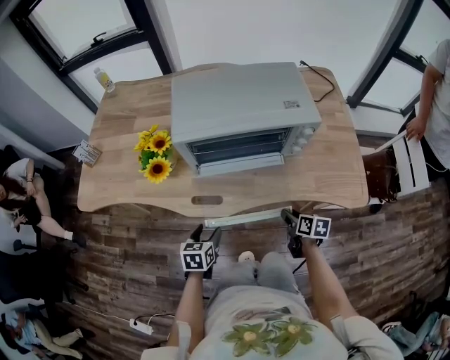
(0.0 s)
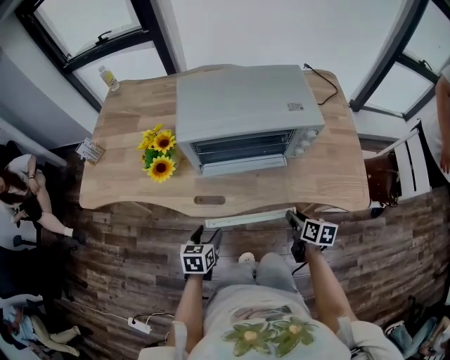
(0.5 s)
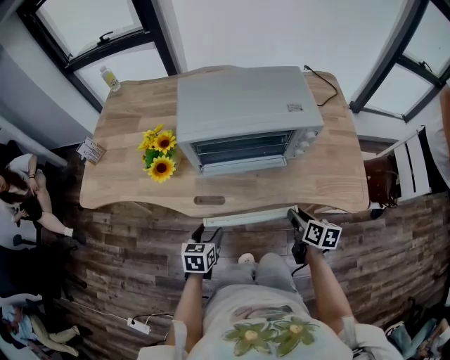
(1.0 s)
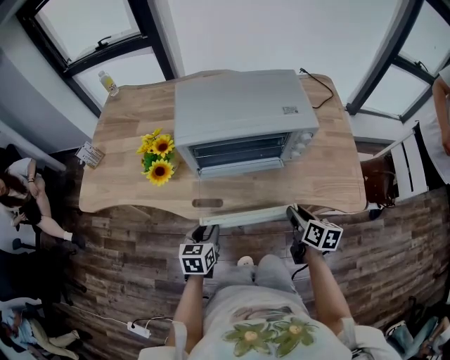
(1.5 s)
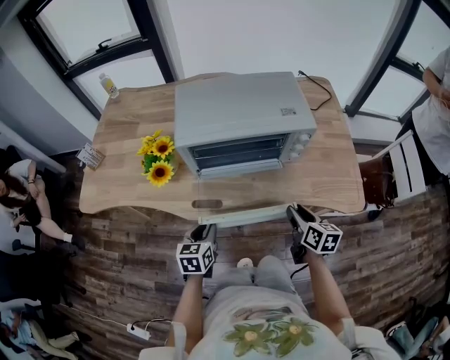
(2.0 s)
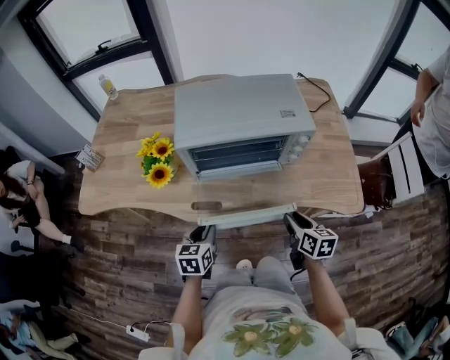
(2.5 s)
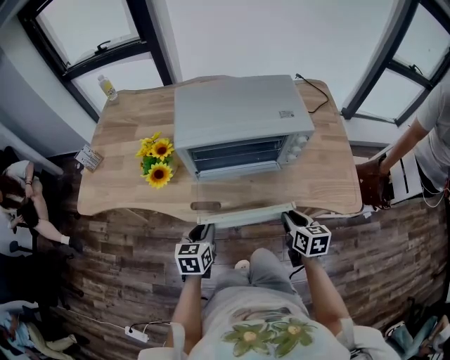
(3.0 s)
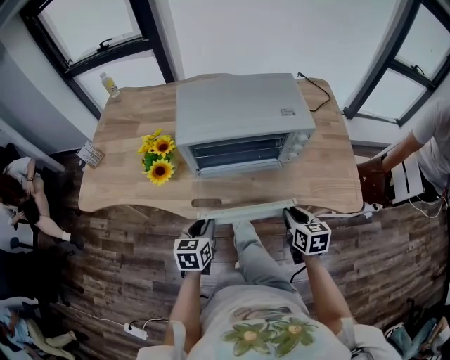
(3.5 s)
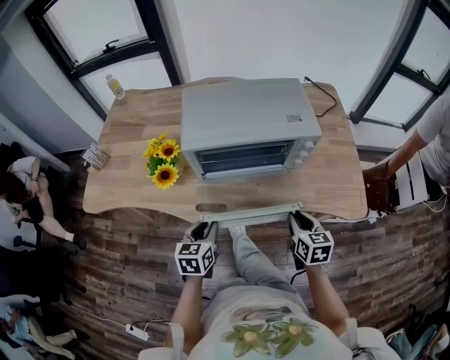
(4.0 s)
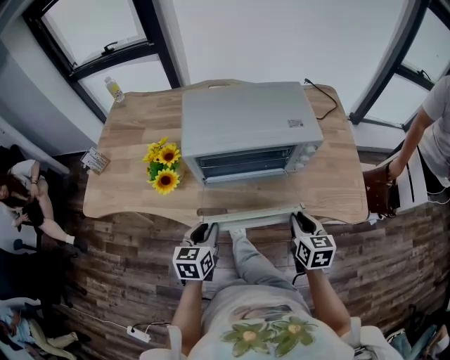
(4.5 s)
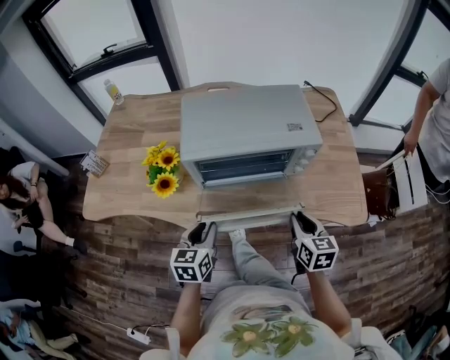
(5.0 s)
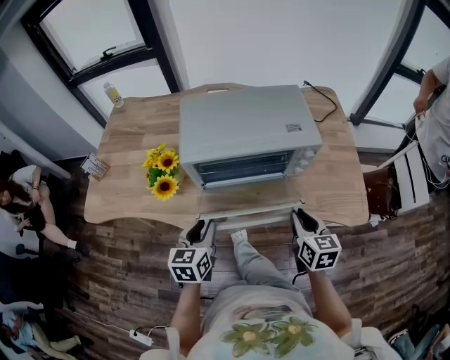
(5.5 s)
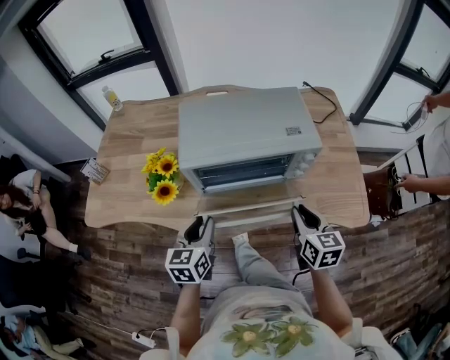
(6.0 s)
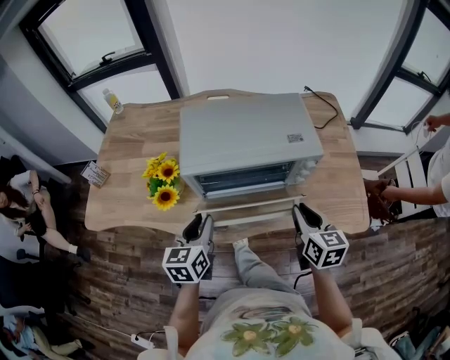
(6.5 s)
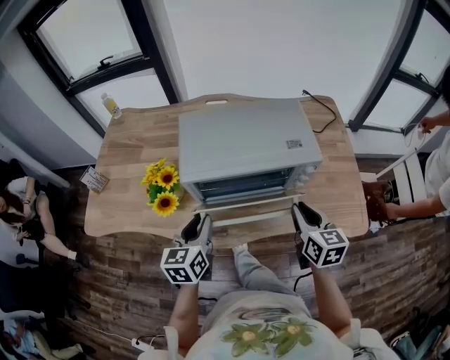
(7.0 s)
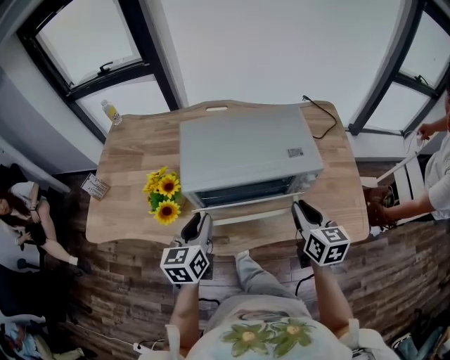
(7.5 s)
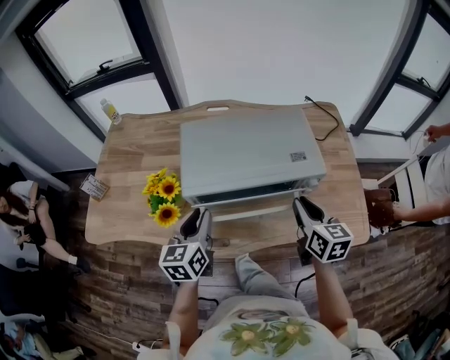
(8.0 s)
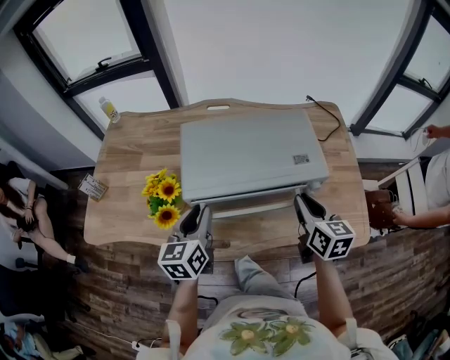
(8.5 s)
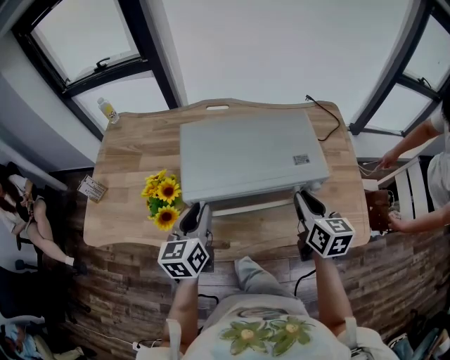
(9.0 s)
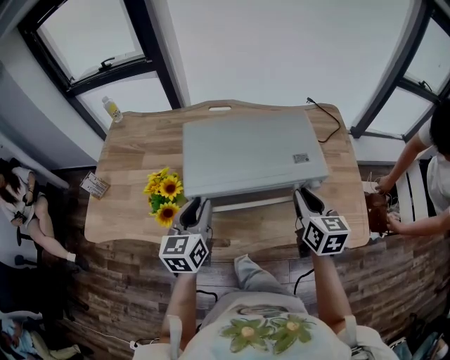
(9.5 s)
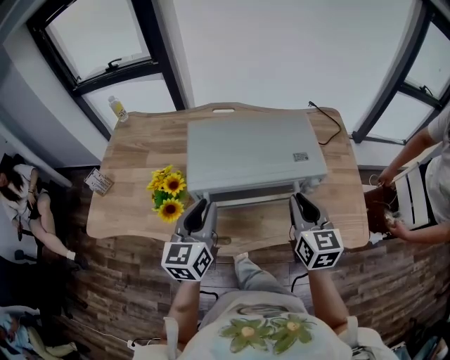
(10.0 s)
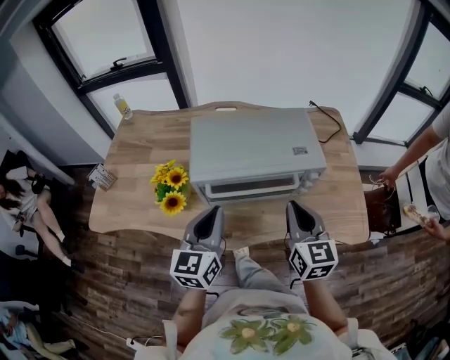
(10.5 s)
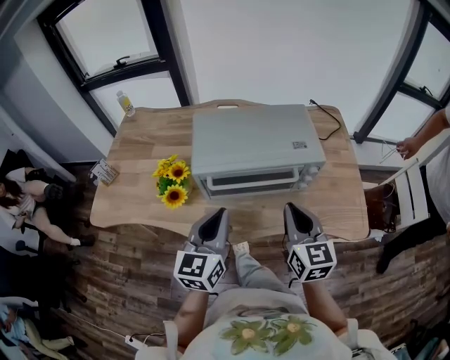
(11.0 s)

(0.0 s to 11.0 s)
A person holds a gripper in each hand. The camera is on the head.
0.0 s - 2.0 s: The right gripper goes some 10 cm upward; the left gripper travels upward by some 5 cm, and closes.
2.0 s - 3.5 s: The grippers move only a little.
3.5 s - 5.5 s: Both grippers move upward, about 5 cm.
5.5 s - 7.5 s: Both grippers travel together forward and upward, roughly 10 cm.
7.5 s - 9.0 s: The right gripper moves approximately 5 cm; the left gripper changes place by about 5 cm.
9.0 s - 11.0 s: The right gripper heads backward and to the left, covering approximately 10 cm, while the left gripper goes approximately 15 cm backward, upward and to the right, and closes its fingers.

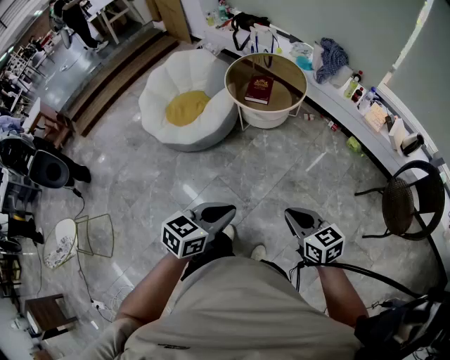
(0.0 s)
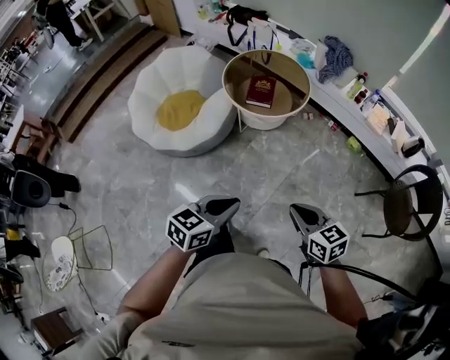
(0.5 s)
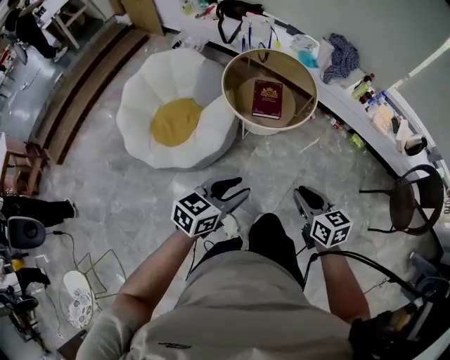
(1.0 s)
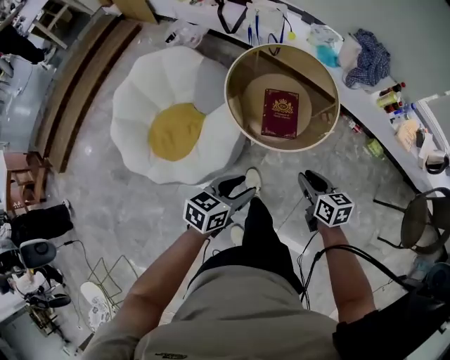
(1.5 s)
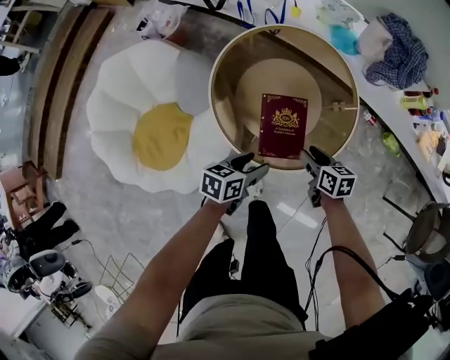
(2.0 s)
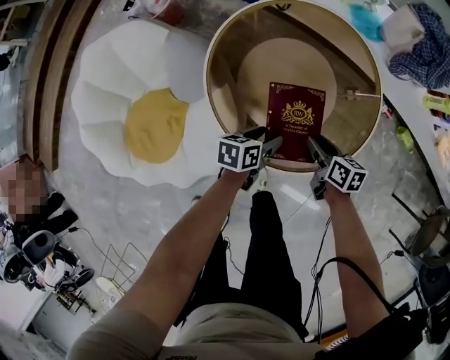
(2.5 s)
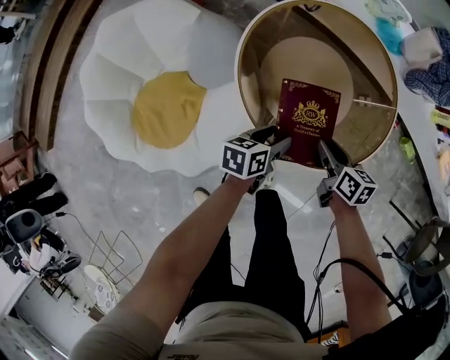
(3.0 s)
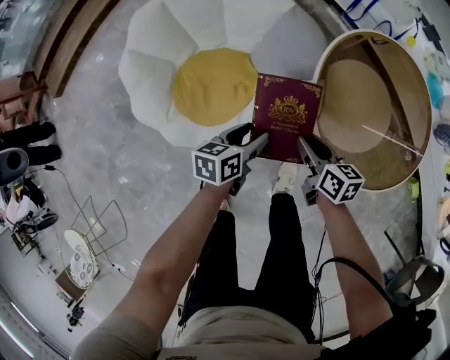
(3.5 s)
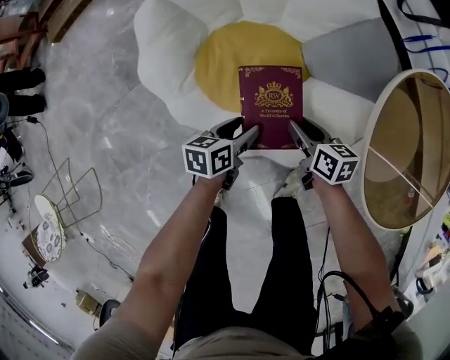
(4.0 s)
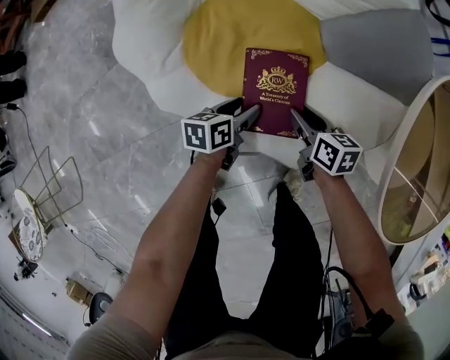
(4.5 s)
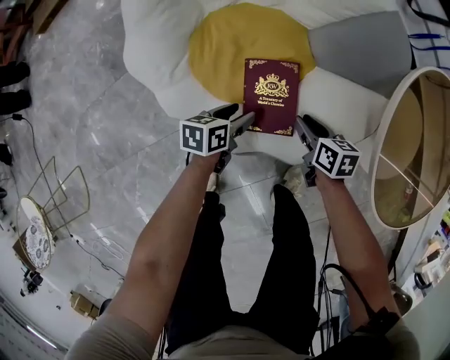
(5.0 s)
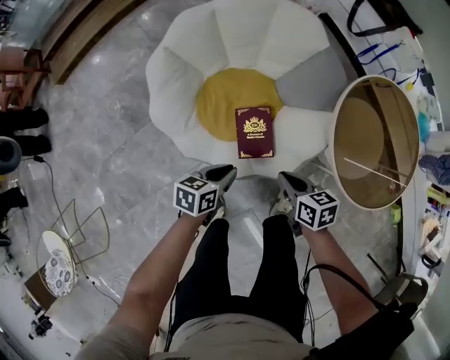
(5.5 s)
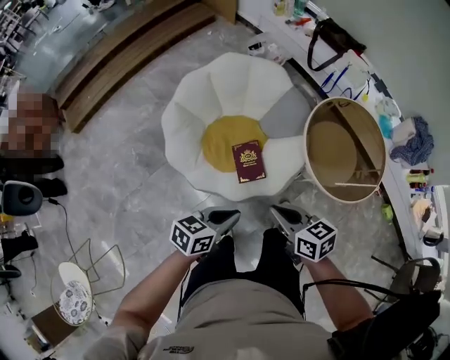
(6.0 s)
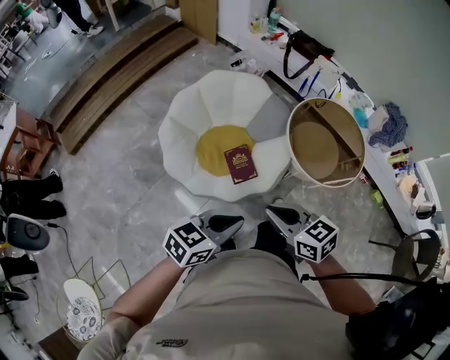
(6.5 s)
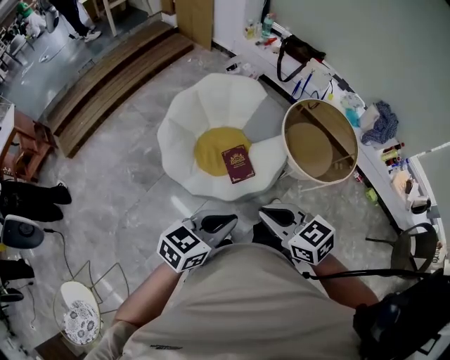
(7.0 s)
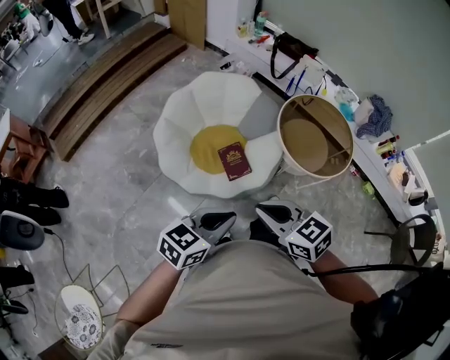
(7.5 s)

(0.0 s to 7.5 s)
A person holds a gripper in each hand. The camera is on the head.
0.0 s - 2.0 s: The pair of grippers is taken forward, approximately 80 cm. The two grippers go approximately 35 cm downward. The right gripper swivels about 40 degrees, and opens, while the left gripper rotates approximately 30 degrees, and opens its fingers.
2.0 s - 4.0 s: The two grippers travel together, some 50 cm. The right gripper swivels some 30 degrees. Meanwhile the left gripper turns by roughly 50 degrees.
4.0 s - 5.5 s: The left gripper travels upward by roughly 15 cm, and closes its fingers; the right gripper heads upward and backward, covering roughly 20 cm, and closes.
5.5 s - 7.5 s: The two grippers go about 50 cm upward and backward. The left gripper turns by approximately 40 degrees, while the right gripper rotates approximately 30 degrees.

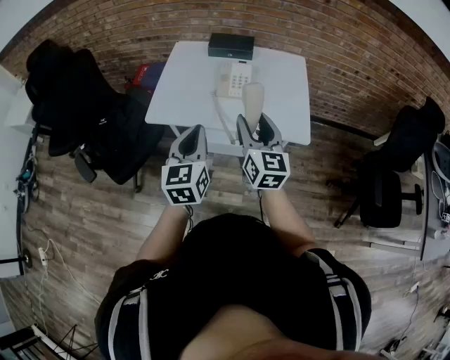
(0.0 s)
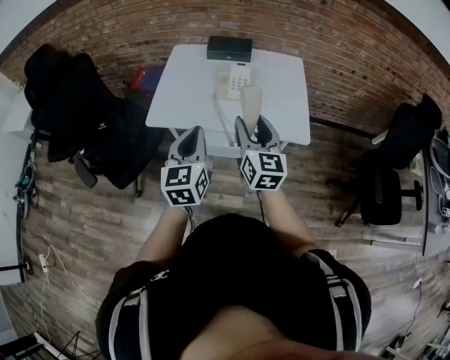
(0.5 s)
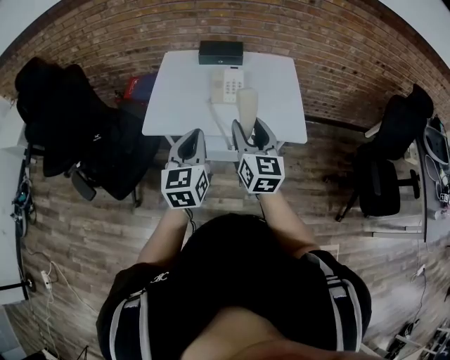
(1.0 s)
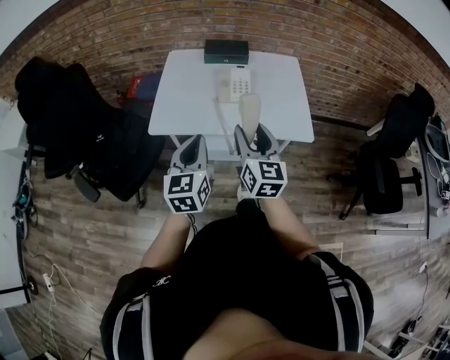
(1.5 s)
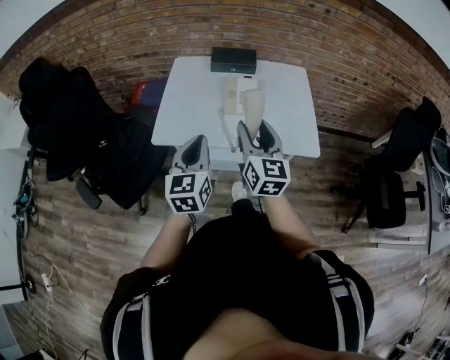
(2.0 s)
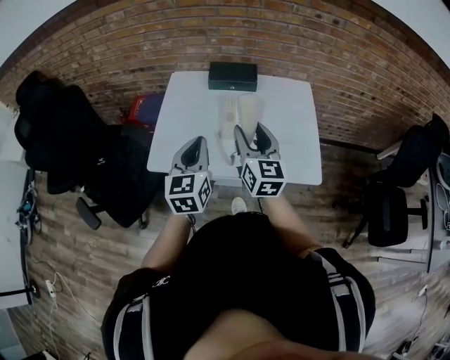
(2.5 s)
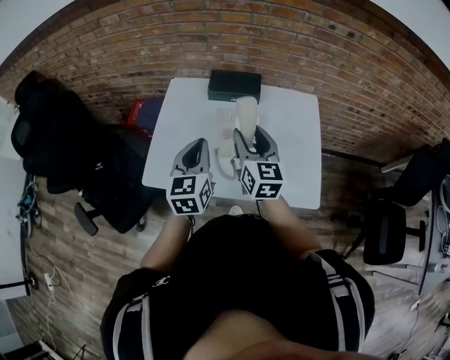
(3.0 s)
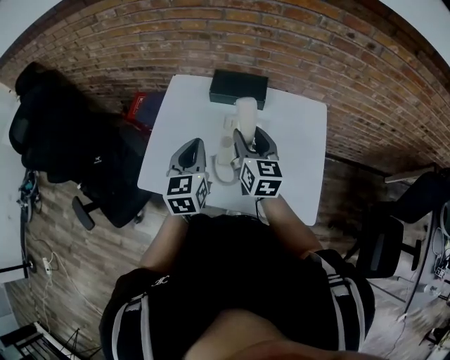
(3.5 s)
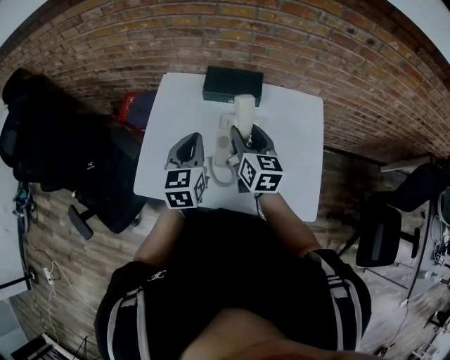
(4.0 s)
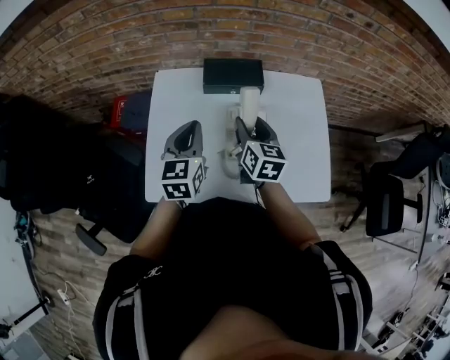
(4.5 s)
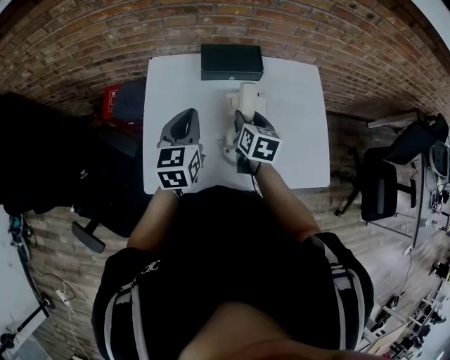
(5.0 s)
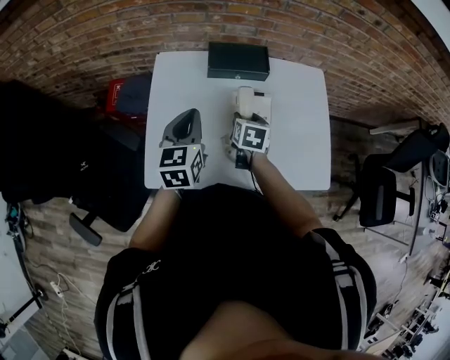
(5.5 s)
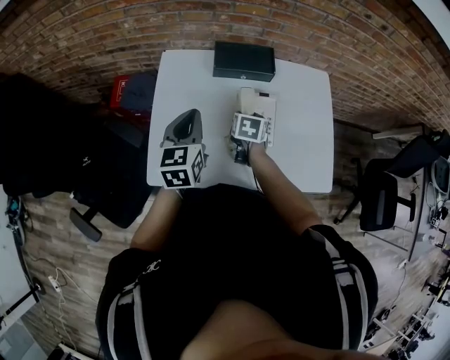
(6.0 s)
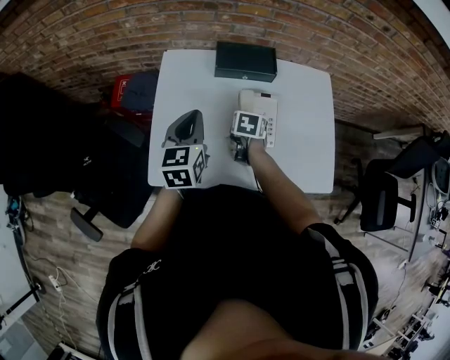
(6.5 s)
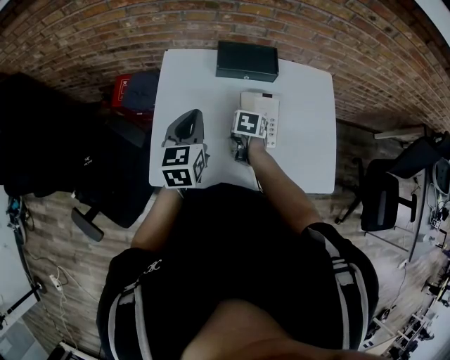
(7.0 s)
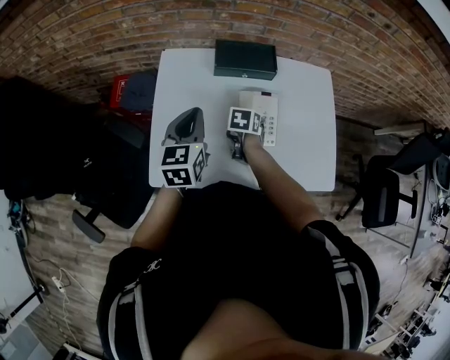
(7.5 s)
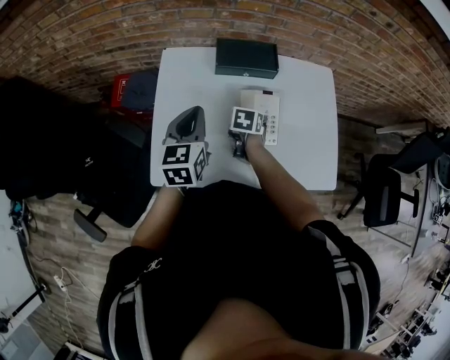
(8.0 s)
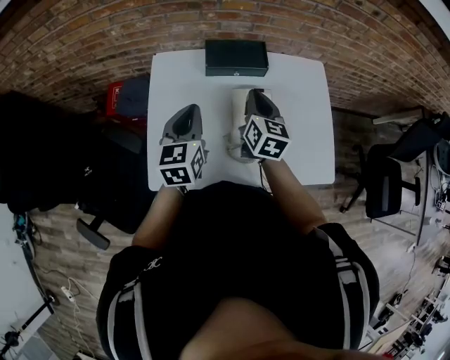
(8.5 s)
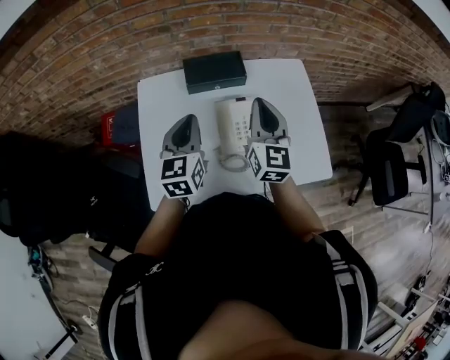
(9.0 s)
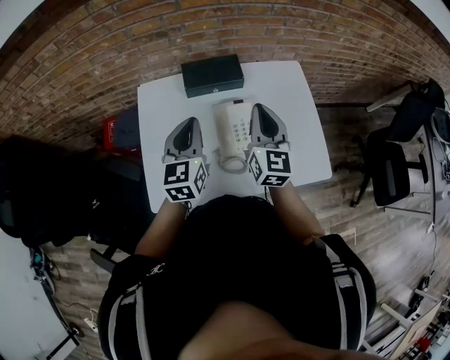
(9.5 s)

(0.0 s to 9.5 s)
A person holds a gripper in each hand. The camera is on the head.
0.0 s - 2.0 s: The grippers both shift to the left by roughly 5 cm.
2.0 s - 4.0 s: The grippers both shift forward by roughly 30 cm.
4.0 s - 5.5 s: The right gripper goes about 15 cm downward, and angles its fingers downward, by approximately 30 degrees. Meanwhile the left gripper moves to the left, roughly 10 cm.
5.5 s - 7.5 s: The right gripper moves downward, some 5 cm.
7.5 s - 9.5 s: The right gripper moves upward, roughly 25 cm, angles its fingers upward, by about 60 degrees, and closes, while the left gripper is displaced to the right by roughly 5 cm.
